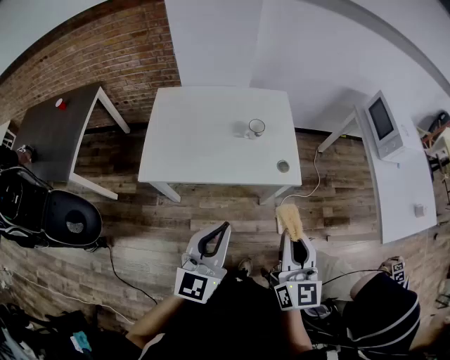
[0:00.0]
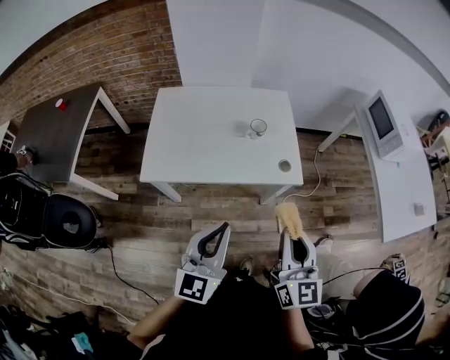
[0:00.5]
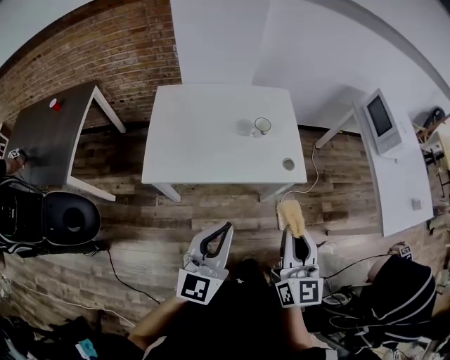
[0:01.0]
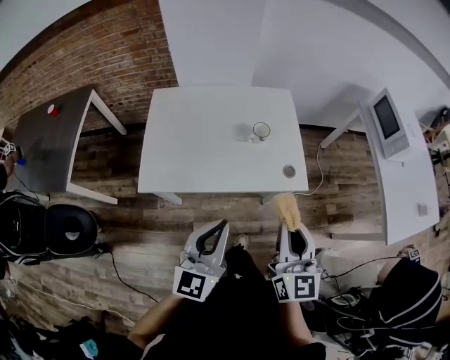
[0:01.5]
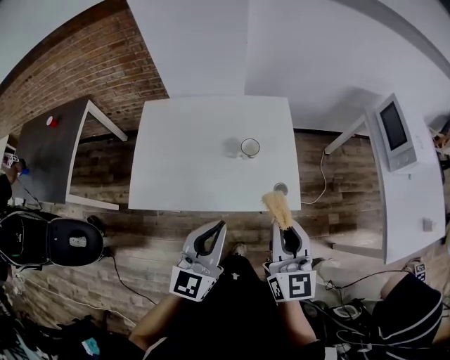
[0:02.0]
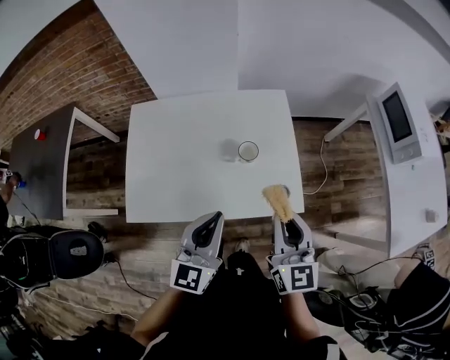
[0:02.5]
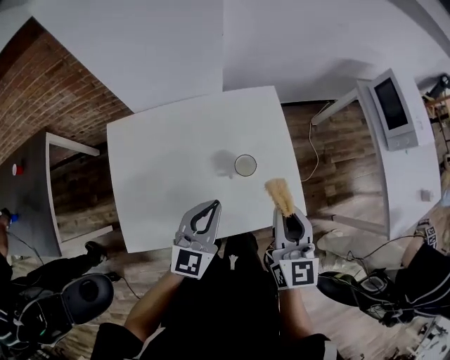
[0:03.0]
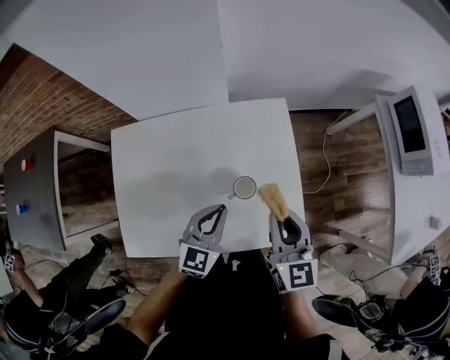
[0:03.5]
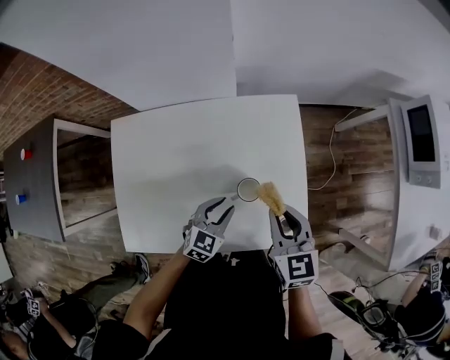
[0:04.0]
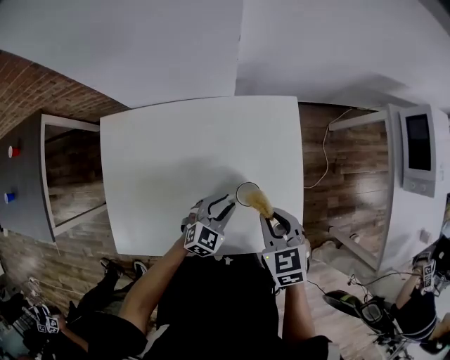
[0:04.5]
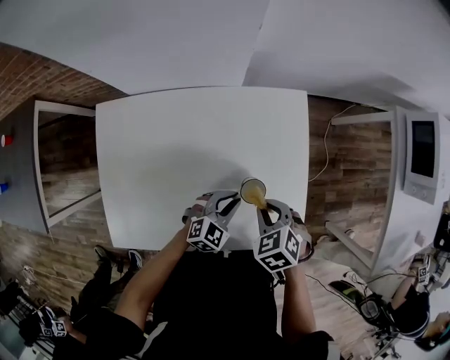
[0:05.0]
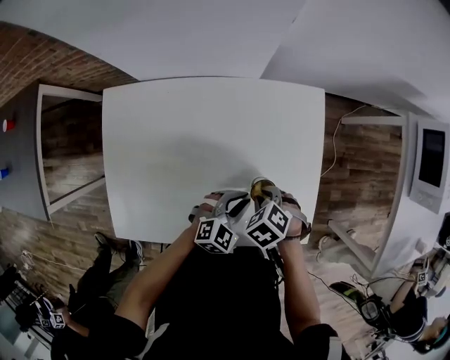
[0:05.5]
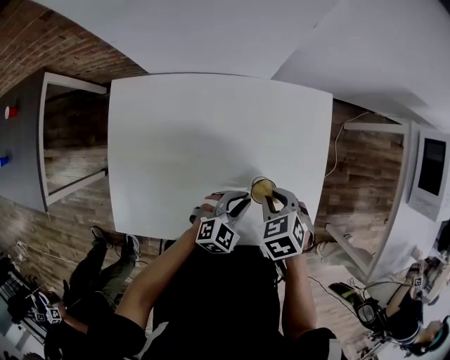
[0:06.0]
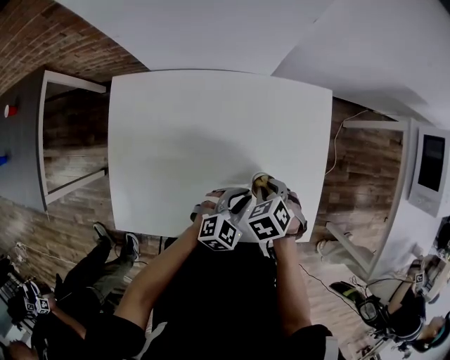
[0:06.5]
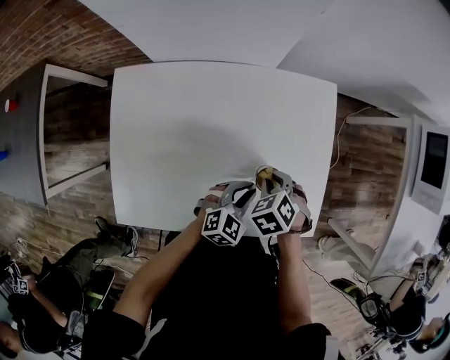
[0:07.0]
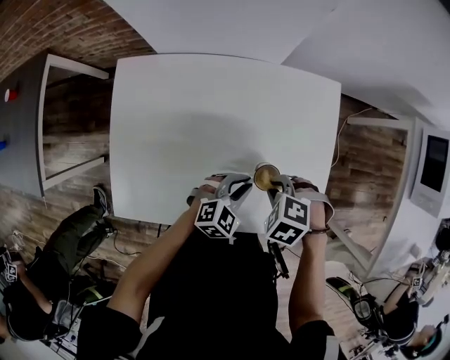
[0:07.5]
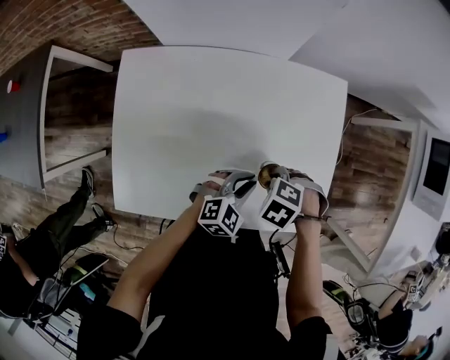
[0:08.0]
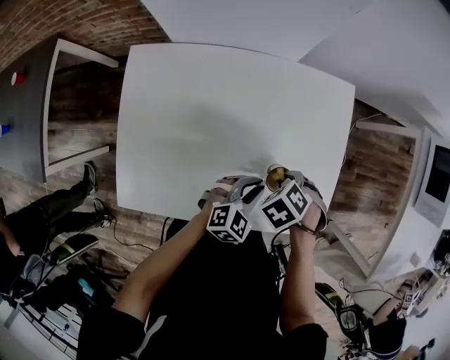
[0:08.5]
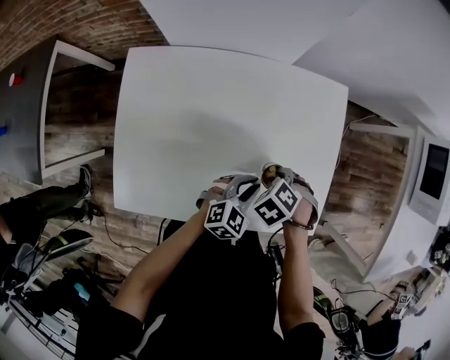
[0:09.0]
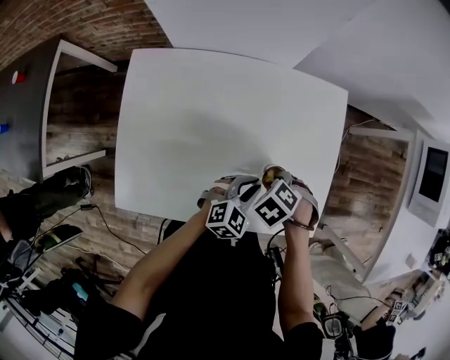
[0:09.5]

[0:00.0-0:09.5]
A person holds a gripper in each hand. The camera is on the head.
0:00.0 to 0:02.0: The grippers both shift forward by roughly 15 cm.
0:02.0 to 0:04.0: Both grippers travel together forward and downward, approximately 30 cm. The left gripper tips its fingers downward by roughly 30 degrees, and opens up; the right gripper changes its angle by some 30 degrees.
0:04.0 to 0:05.5: The right gripper goes roughly 20 cm downward, and tips its fingers downward by roughly 50 degrees.
0:05.5 to 0:07.5: The right gripper swivels approximately 30 degrees.
0:07.5 to 0:09.5: The right gripper changes its angle by roughly 20 degrees.

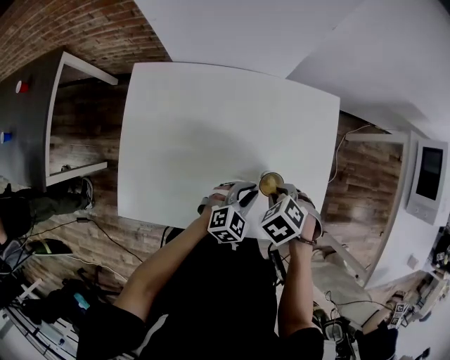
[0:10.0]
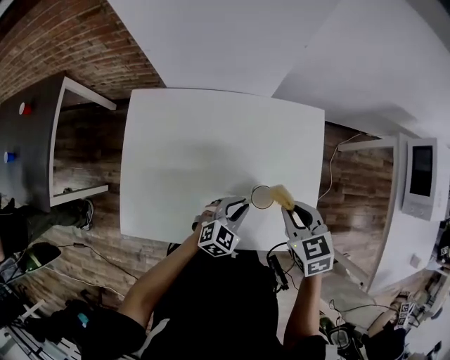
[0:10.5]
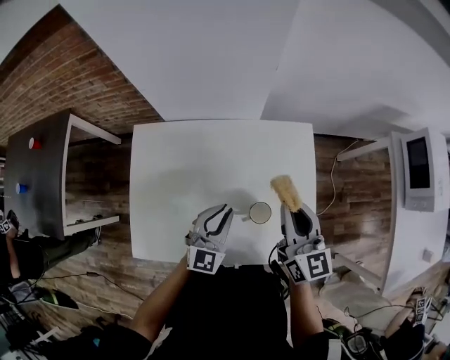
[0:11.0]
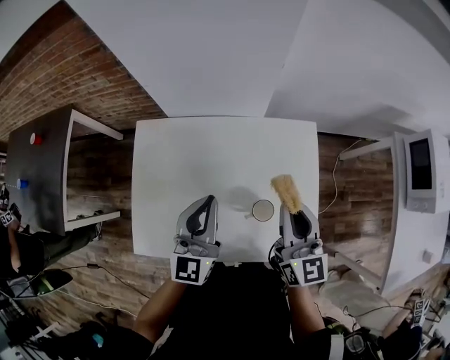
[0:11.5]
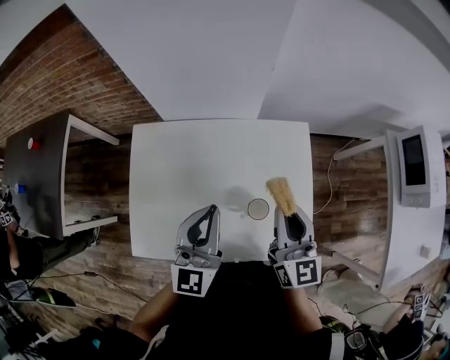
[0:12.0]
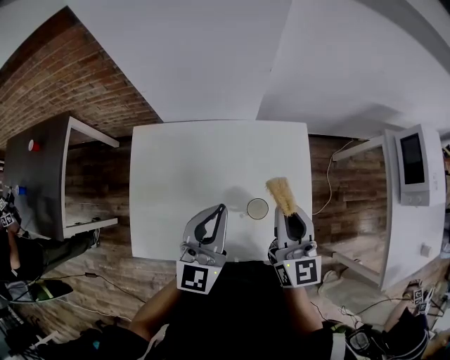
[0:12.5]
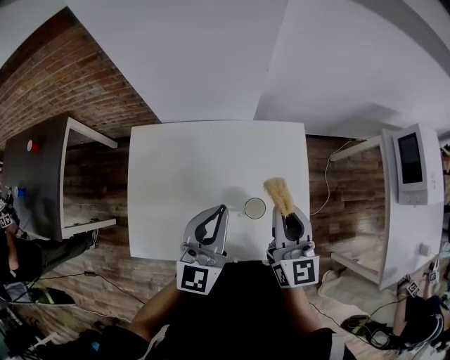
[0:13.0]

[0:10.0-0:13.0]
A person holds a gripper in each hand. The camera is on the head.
0:10.0 to 0:11.5: The grippers both shift upward by approximately 25 cm. The right gripper angles its fingers upward, by some 80 degrees, while the left gripper points its fingers some 40 degrees further upward.
0:11.5 to 0:13.0: The left gripper ends up some 5 cm from where it was.

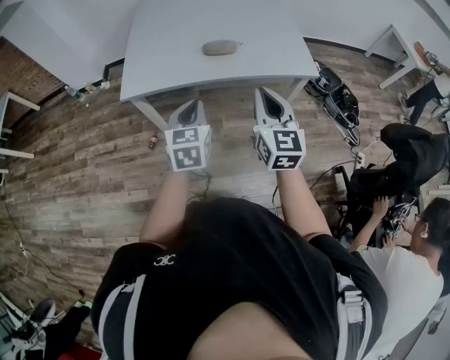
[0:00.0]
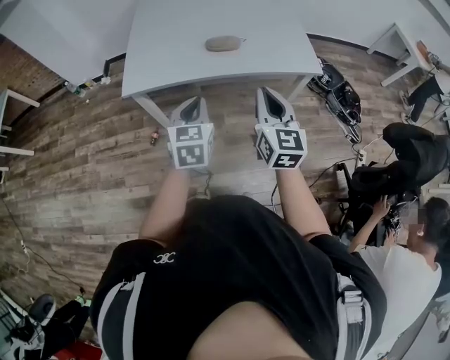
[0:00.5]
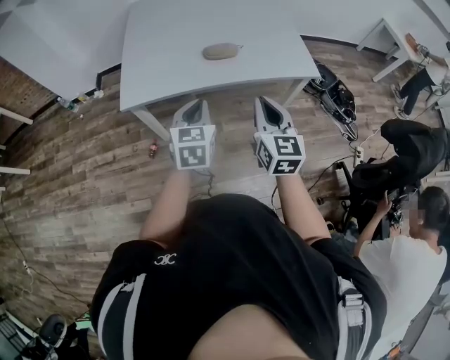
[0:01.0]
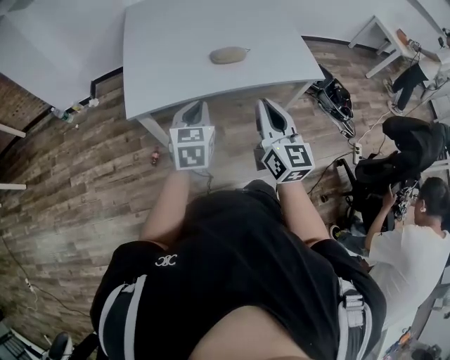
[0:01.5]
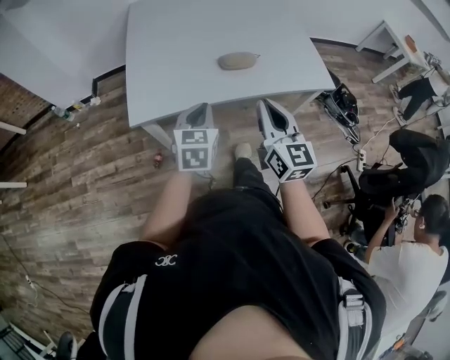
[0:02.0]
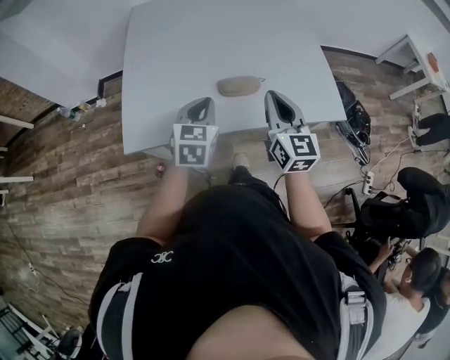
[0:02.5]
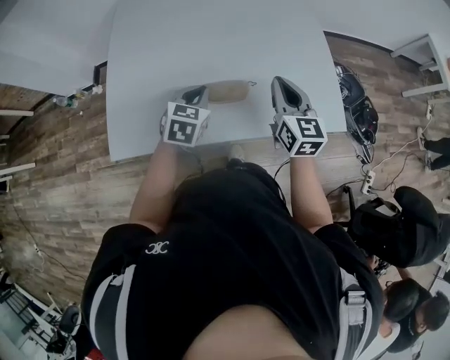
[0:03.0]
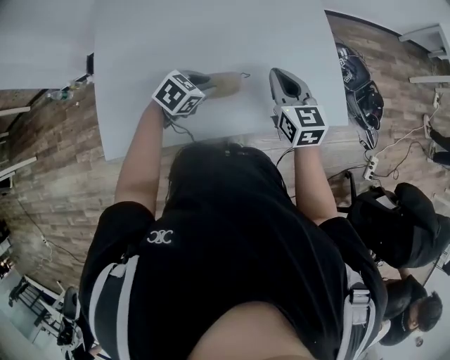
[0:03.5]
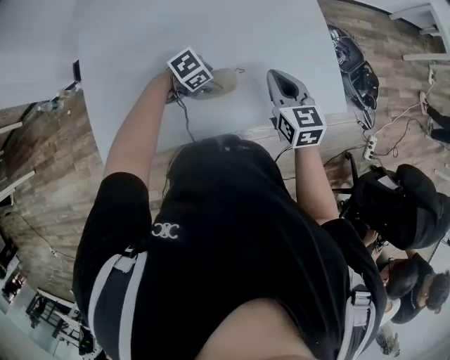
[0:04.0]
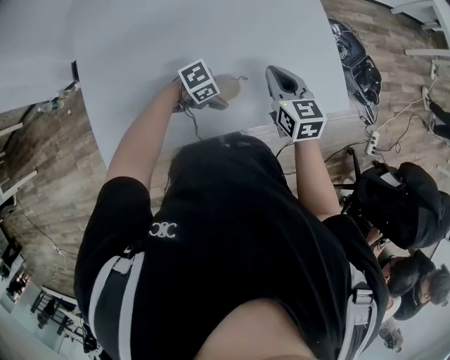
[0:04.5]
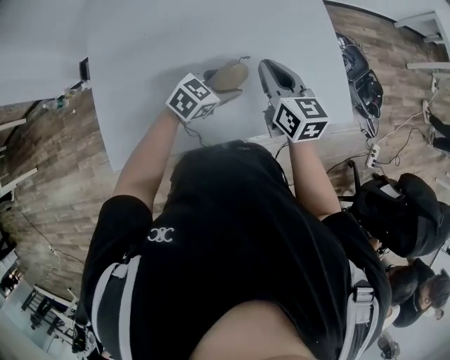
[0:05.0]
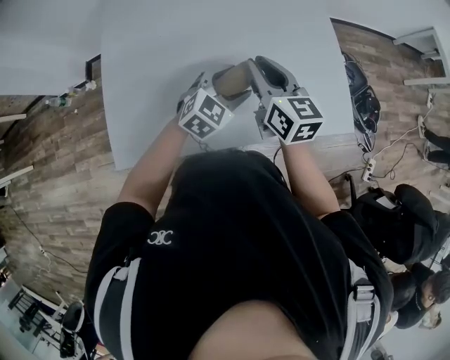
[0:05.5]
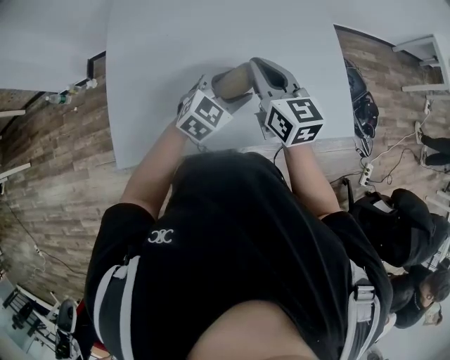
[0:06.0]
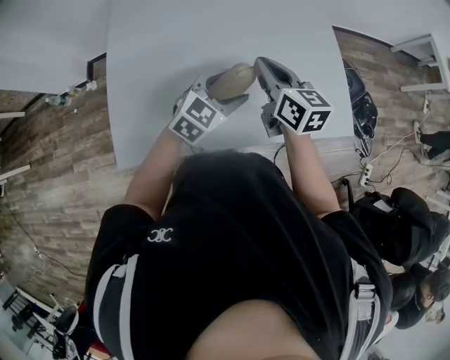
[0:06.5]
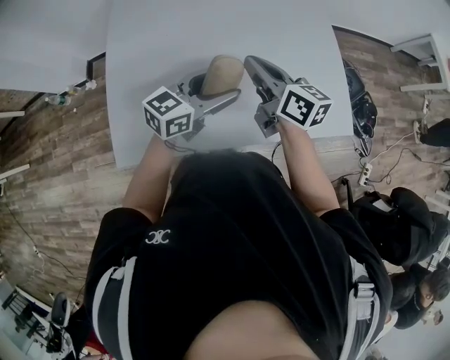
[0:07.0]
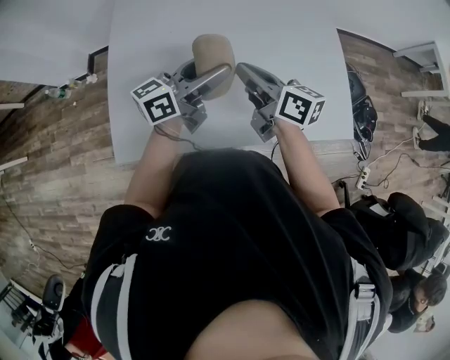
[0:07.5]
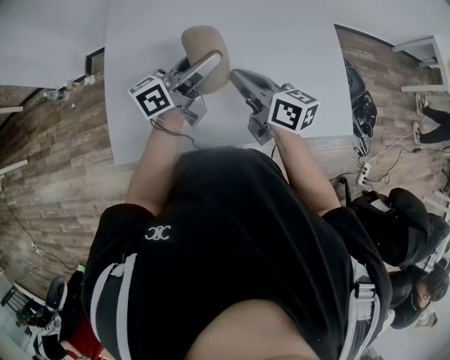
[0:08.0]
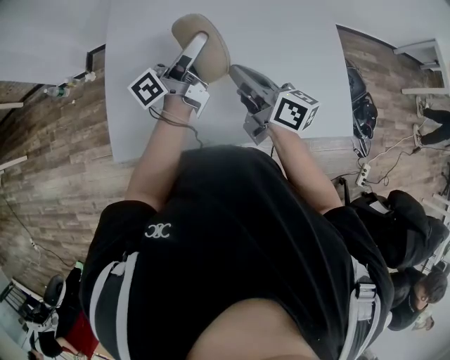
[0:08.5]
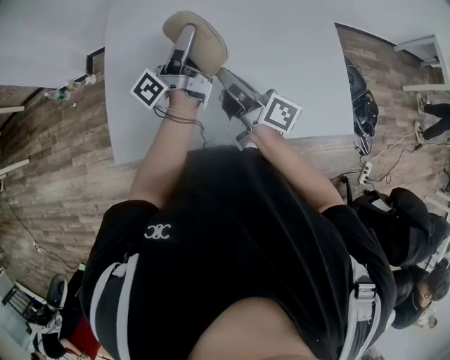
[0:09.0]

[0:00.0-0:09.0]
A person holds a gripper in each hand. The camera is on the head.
0:00.0 to 0:02.0: The left gripper travels forward and to the left by about 20 cm. Meanwhile the right gripper is displaced to the left and forward by some 20 cm.
0:02.0 to 0:04.5: The two grippers travel together, about 40 cm. The left gripper changes its angle by some 80 degrees, and opens; the right gripper turns by approximately 30 degrees.
0:04.5 to 0:07.0: The left gripper shifts about 25 cm upward, and angles its fingers upward, by roughly 40 degrees, while the right gripper ends up approximately 20 cm from where it was, and changes its angle by about 30 degrees.
0:07.0 to 0:09.0: The left gripper shifts approximately 15 cm forward, to the left and upward, and angles its fingers upward, by roughly 40 degrees; the right gripper travels to the left by some 5 cm, and rotates about 30 degrees.

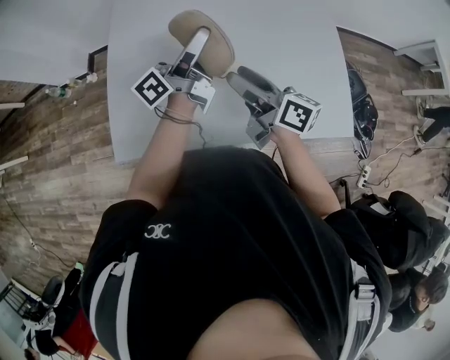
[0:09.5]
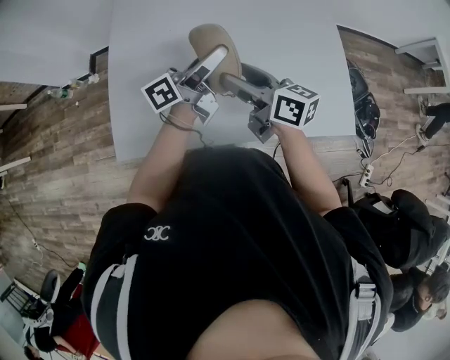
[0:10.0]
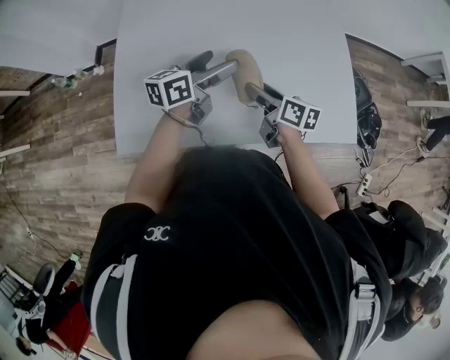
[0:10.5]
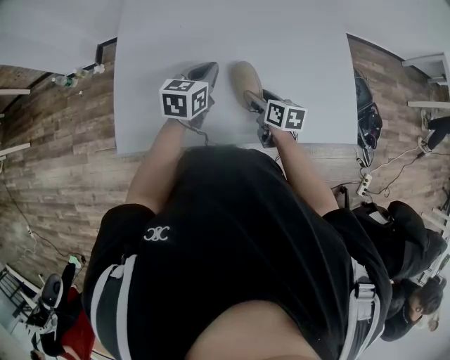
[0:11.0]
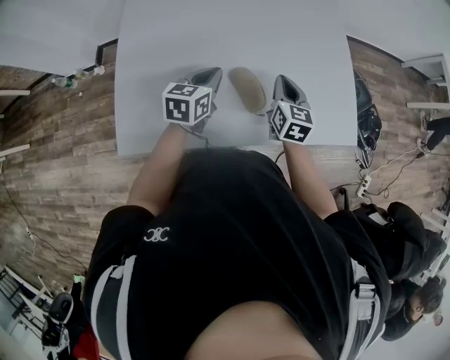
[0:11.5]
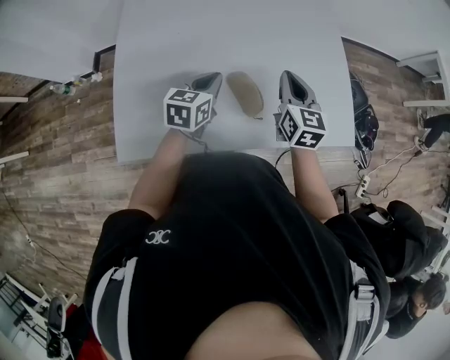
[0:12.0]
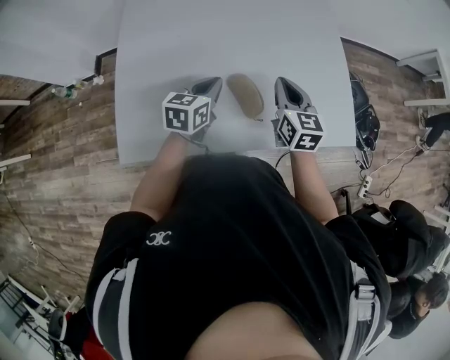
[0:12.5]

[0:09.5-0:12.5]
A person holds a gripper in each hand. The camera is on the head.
0:09.5 to 0:11.0: Both grippers move downward, approximately 15 cm. The right gripper tips its fingers downward by approximately 30 degrees, while the left gripper tilts its fingers some 50 degrees downward, and closes up.
0:11.0 to 0:12.5: The right gripper heads upward, covering approximately 15 cm, swivels about 30 degrees, and closes.

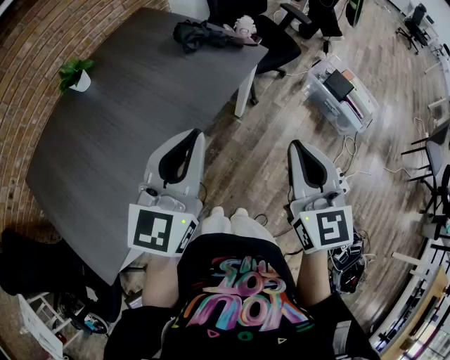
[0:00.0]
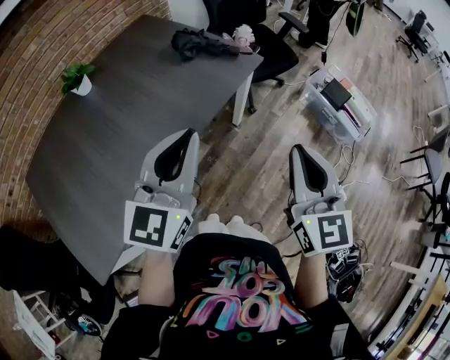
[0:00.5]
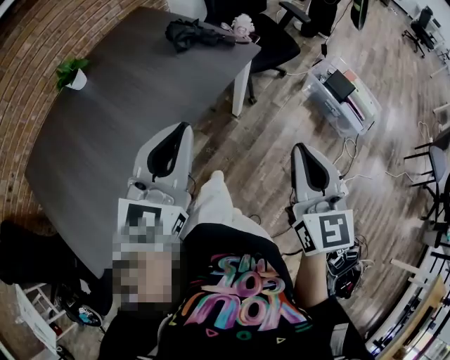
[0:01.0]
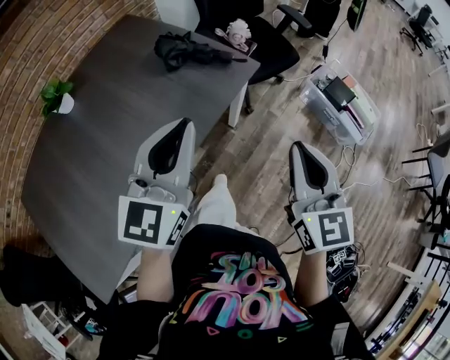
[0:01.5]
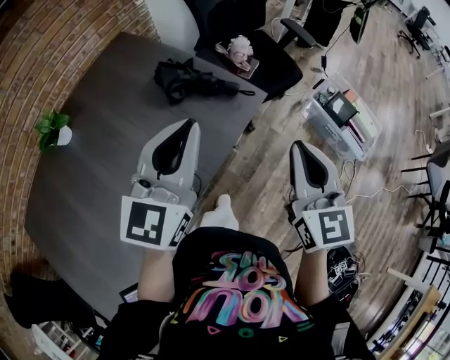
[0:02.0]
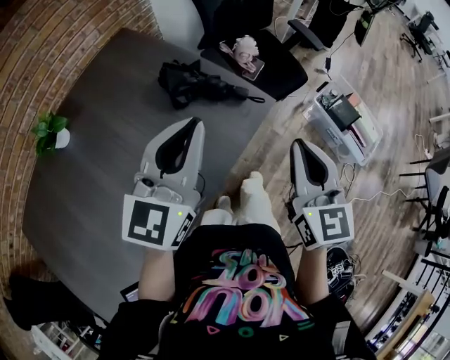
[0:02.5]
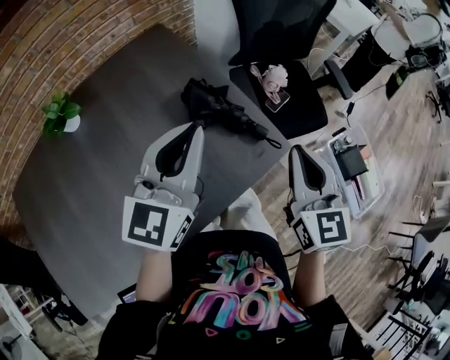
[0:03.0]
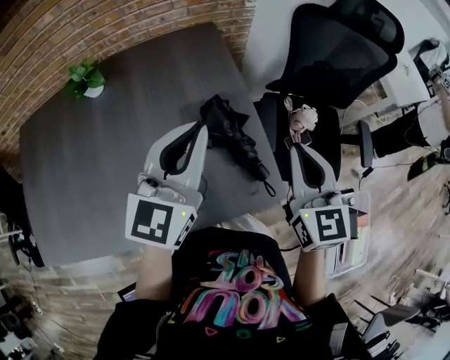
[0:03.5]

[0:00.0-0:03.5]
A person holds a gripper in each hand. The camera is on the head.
0:00.0 to 0:02.0: Both grippers travel together forward, roughly 25 cm.
0:02.0 to 0:03.5: The left gripper changes place by some 20 cm, and changes its angle by roughly 40 degrees, while the right gripper ends up roughly 30 cm from where it was, and turns by roughly 40 degrees.
